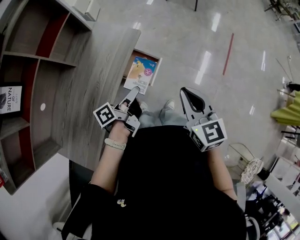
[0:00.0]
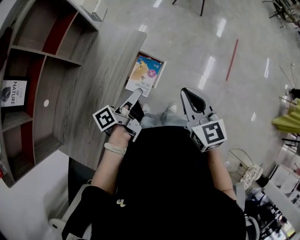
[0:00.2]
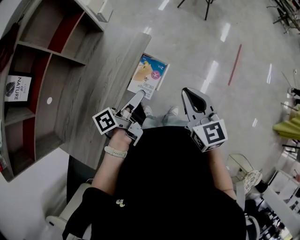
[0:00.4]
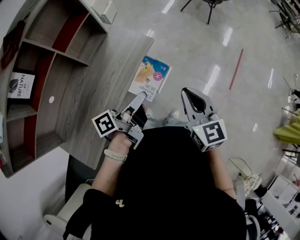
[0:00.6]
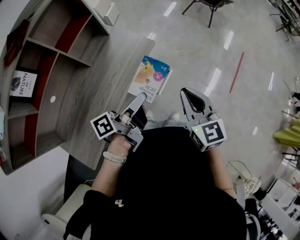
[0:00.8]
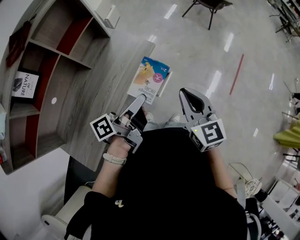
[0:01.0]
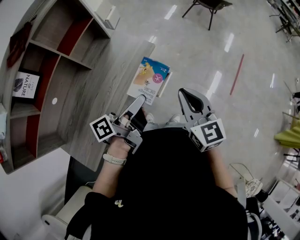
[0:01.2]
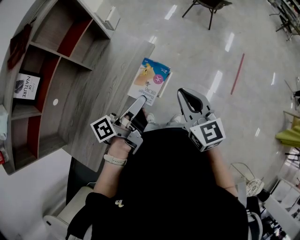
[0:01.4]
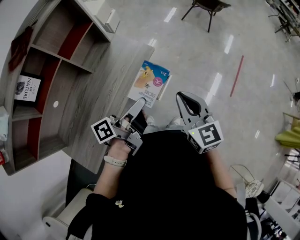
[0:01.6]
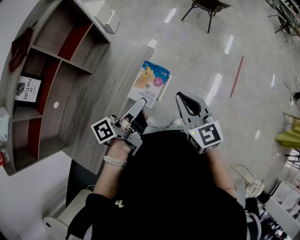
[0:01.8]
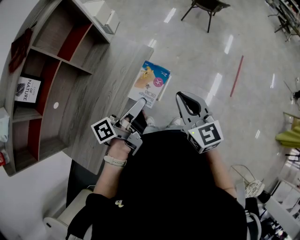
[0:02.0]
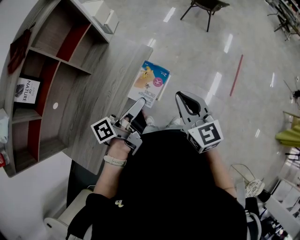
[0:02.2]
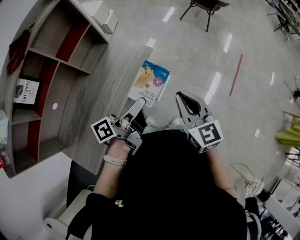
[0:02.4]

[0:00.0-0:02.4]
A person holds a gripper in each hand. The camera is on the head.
0:00.0 to 0:01.2: The left gripper is displaced upward by some 15 cm. The right gripper ends up some 5 cm from where it was.
0:01.2 to 0:02.4: Neither gripper changes place.

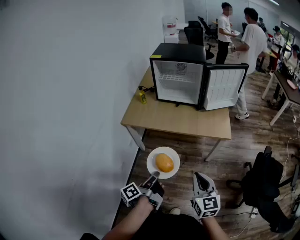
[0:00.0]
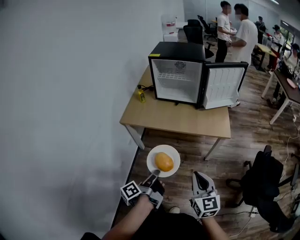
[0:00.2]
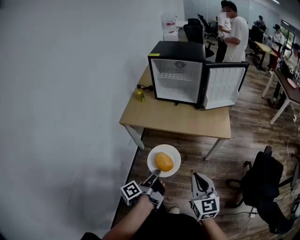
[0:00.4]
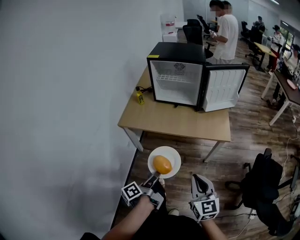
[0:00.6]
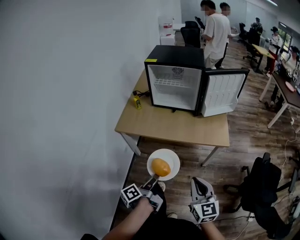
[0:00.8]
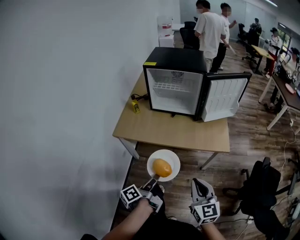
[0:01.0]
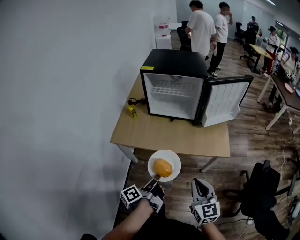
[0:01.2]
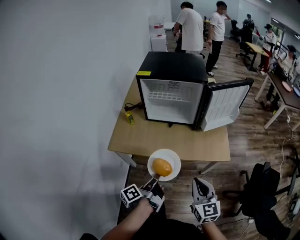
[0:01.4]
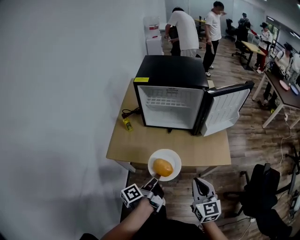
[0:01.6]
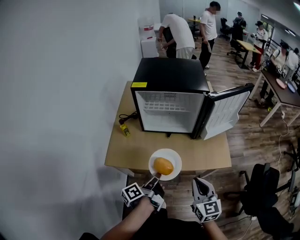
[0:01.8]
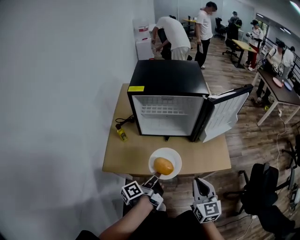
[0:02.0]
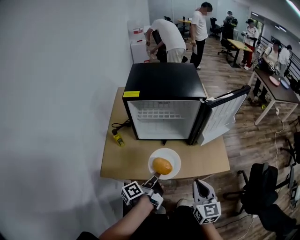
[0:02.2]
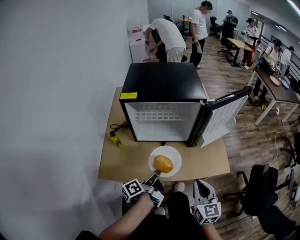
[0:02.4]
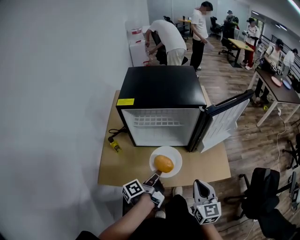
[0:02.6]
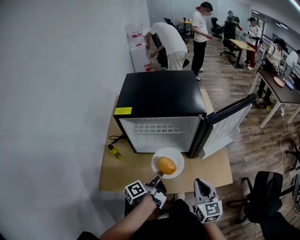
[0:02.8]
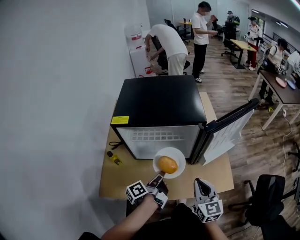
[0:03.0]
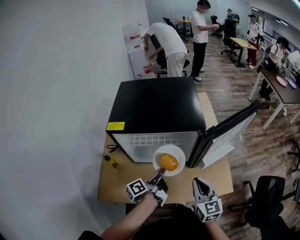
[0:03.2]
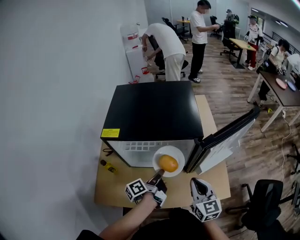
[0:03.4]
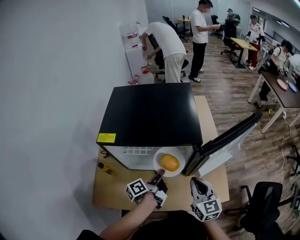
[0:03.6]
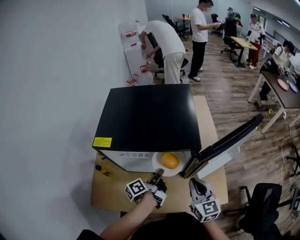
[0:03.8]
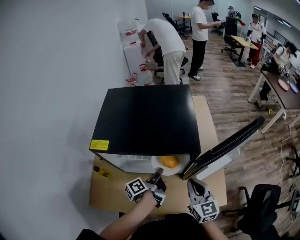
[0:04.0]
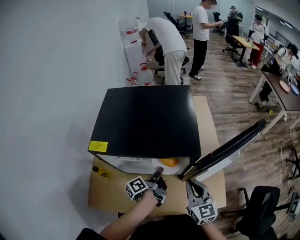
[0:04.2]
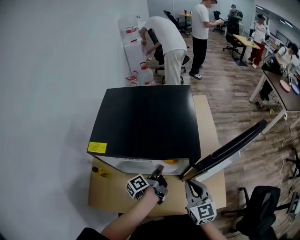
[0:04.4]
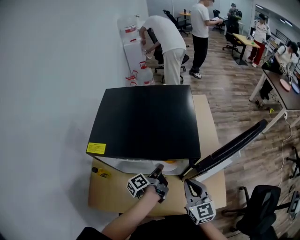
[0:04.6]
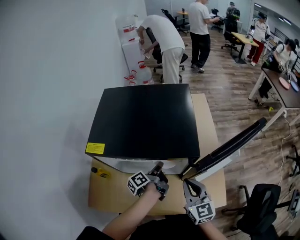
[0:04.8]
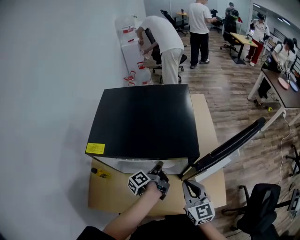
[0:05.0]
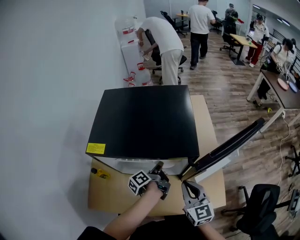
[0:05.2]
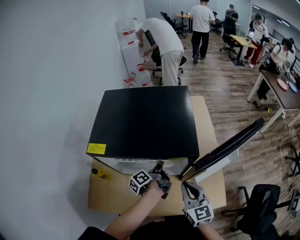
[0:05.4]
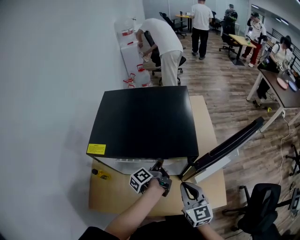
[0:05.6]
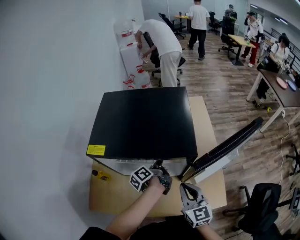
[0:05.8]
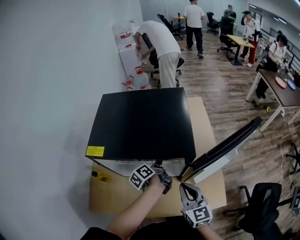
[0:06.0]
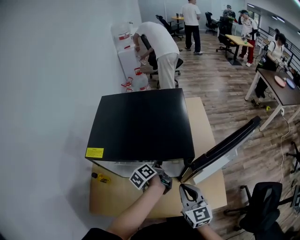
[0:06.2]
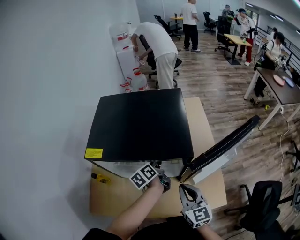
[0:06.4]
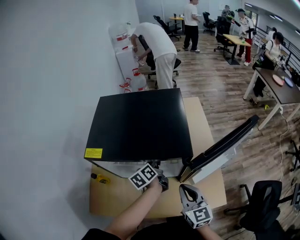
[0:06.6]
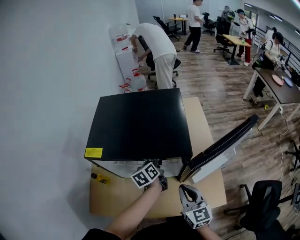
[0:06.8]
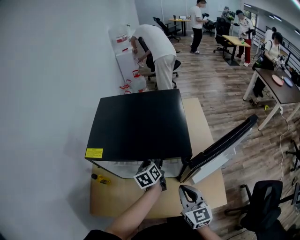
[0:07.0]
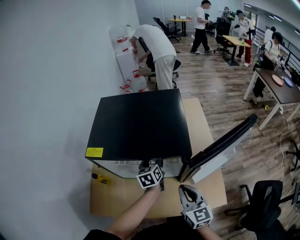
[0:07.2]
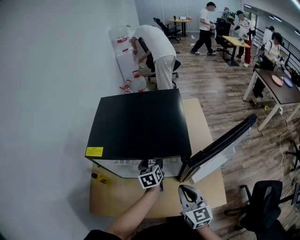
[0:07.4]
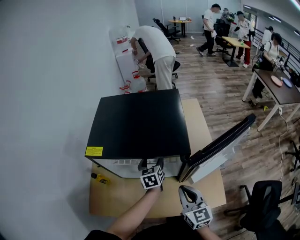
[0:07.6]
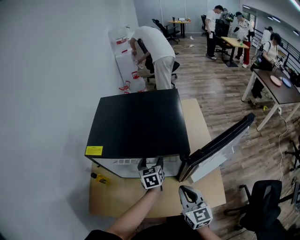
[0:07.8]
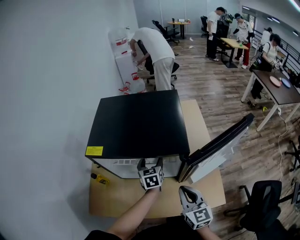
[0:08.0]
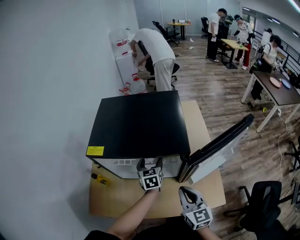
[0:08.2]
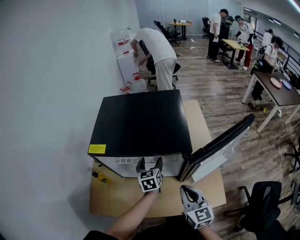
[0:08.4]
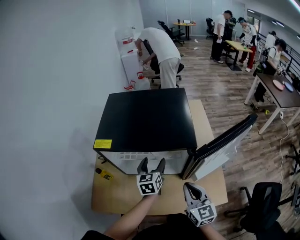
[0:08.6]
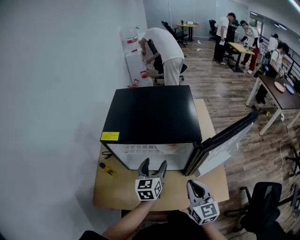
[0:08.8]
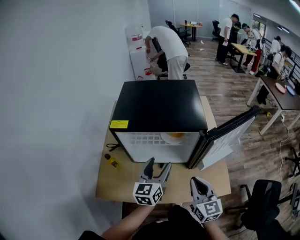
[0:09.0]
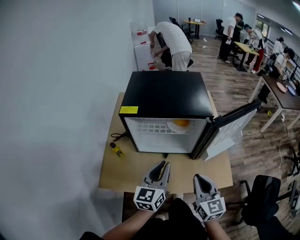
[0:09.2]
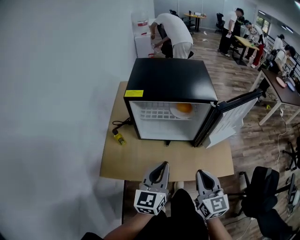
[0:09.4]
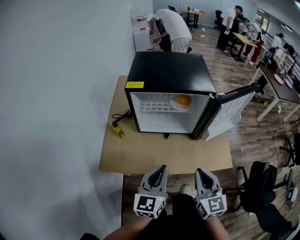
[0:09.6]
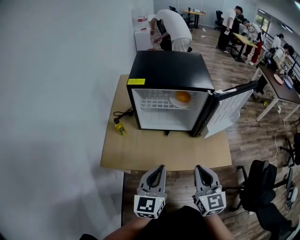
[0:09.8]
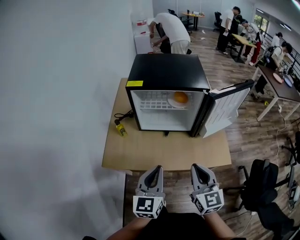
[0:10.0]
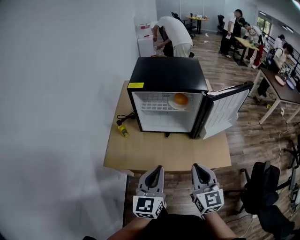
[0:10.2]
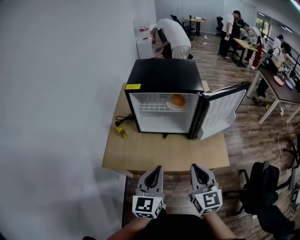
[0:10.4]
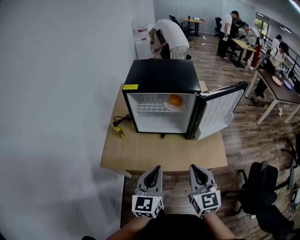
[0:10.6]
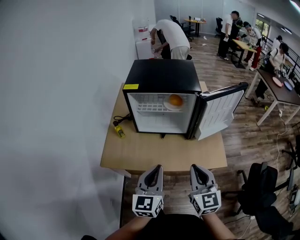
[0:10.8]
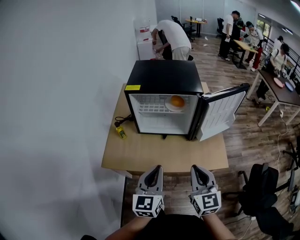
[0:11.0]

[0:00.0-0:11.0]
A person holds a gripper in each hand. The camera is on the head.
0:00.0 to 0:01.6: The grippers both shift forward by approximately 25 cm.
0:01.6 to 0:03.2: Both grippers move forward, roughly 30 cm.
0:03.2 to 0:04.8: Both grippers move forward, approximately 10 cm.
0:04.8 to 0:06.2: There are only small adjustments of the grippers.
0:06.2 to 0:07.8: The left gripper twists approximately 60 degrees clockwise, seen from behind, and opens up.
0:07.8 to 0:09.4: The right gripper goes approximately 15 cm backward and to the left; the left gripper heads backward and upward, covering about 35 cm, changes its angle by some 30 degrees, and closes.
0:09.4 to 0:11.0: The grippers both shift backward by some 10 cm.

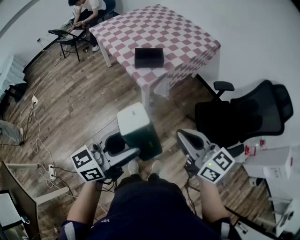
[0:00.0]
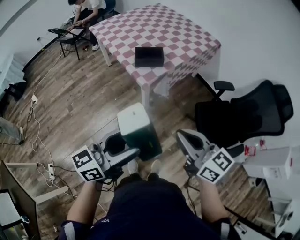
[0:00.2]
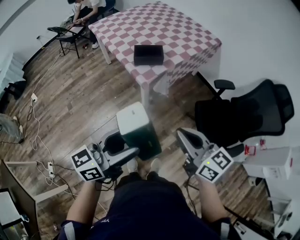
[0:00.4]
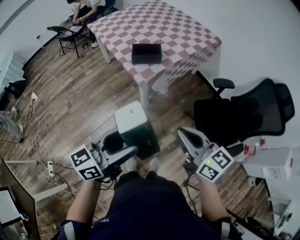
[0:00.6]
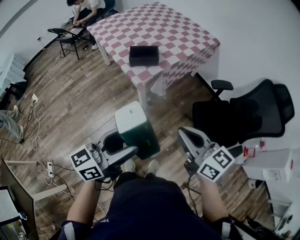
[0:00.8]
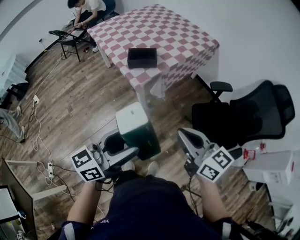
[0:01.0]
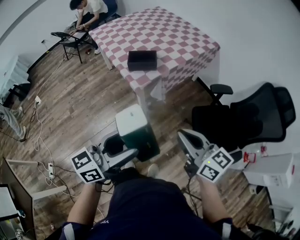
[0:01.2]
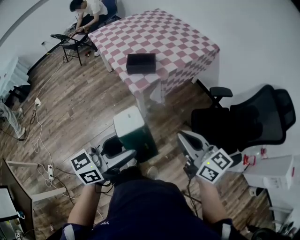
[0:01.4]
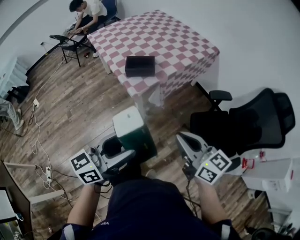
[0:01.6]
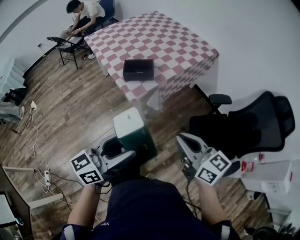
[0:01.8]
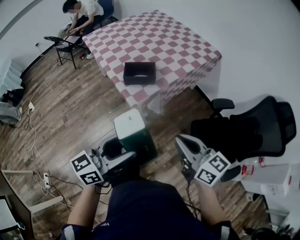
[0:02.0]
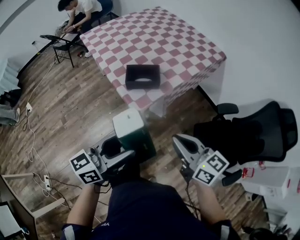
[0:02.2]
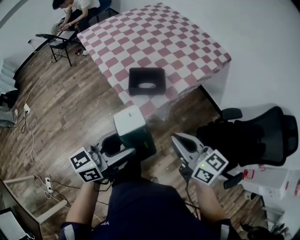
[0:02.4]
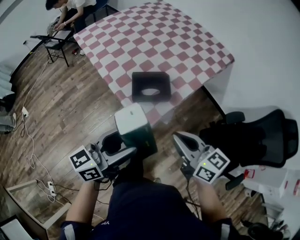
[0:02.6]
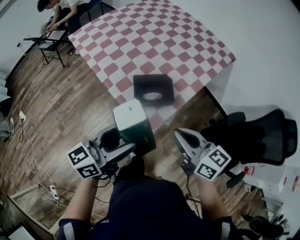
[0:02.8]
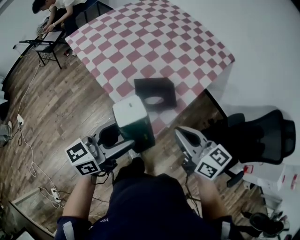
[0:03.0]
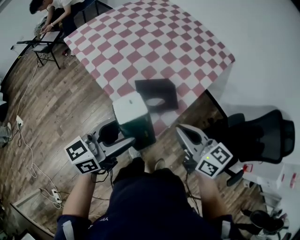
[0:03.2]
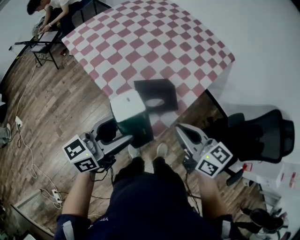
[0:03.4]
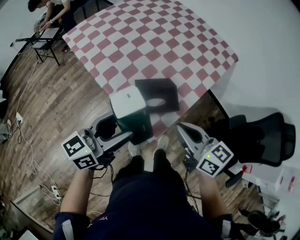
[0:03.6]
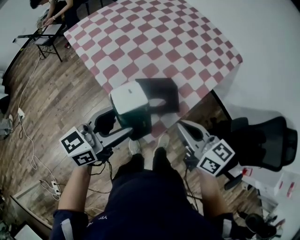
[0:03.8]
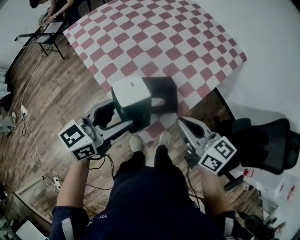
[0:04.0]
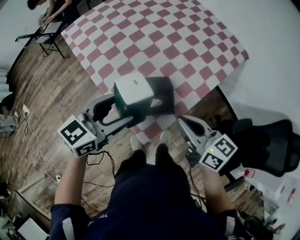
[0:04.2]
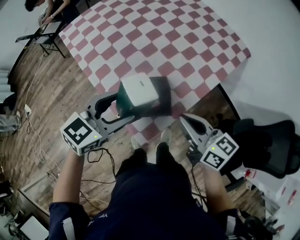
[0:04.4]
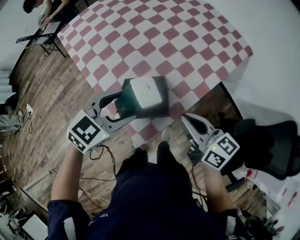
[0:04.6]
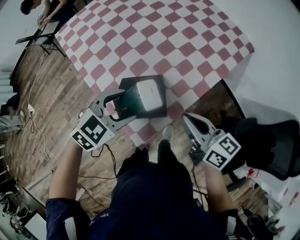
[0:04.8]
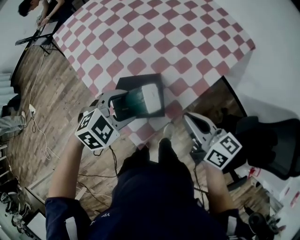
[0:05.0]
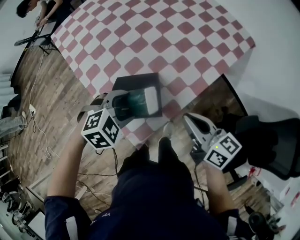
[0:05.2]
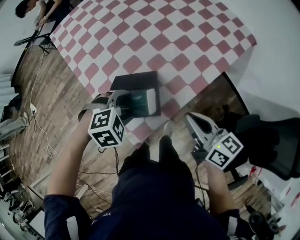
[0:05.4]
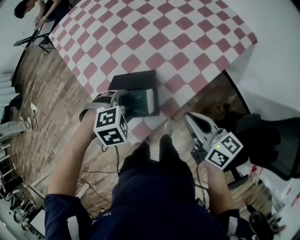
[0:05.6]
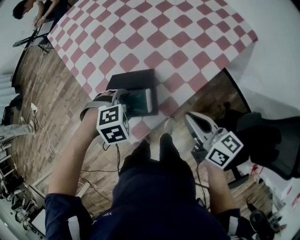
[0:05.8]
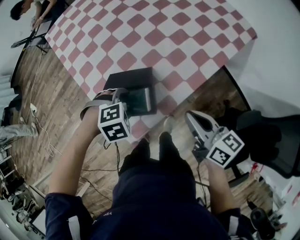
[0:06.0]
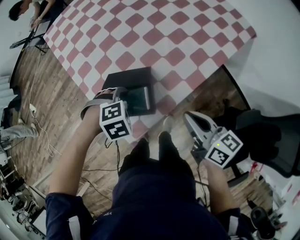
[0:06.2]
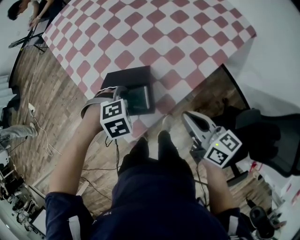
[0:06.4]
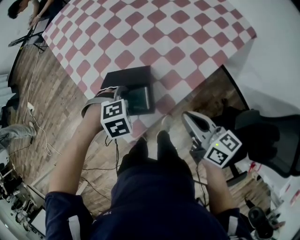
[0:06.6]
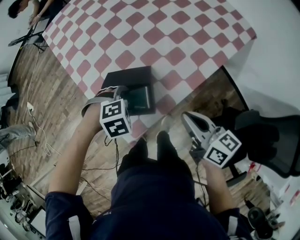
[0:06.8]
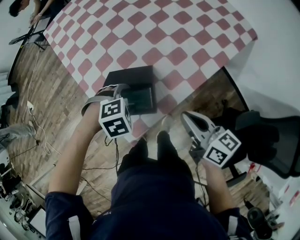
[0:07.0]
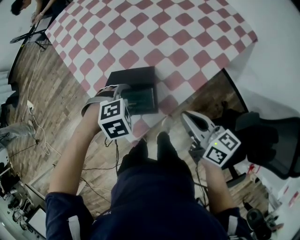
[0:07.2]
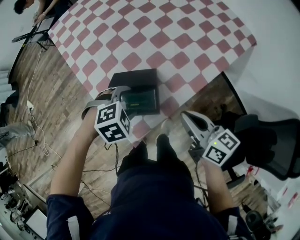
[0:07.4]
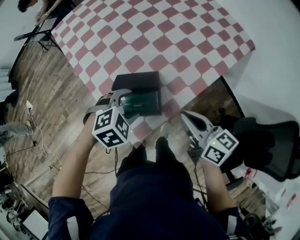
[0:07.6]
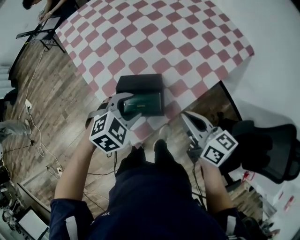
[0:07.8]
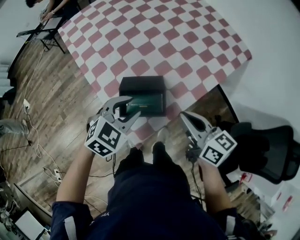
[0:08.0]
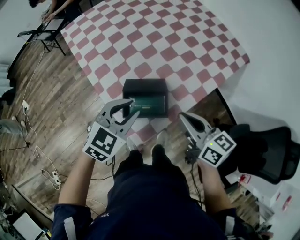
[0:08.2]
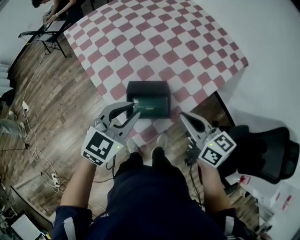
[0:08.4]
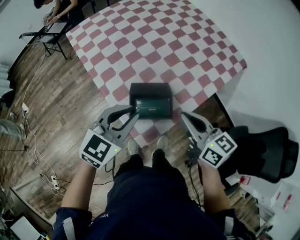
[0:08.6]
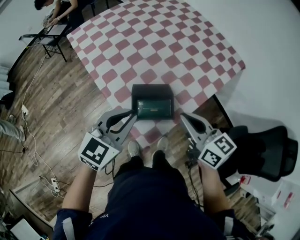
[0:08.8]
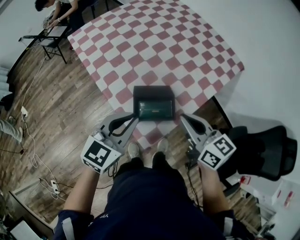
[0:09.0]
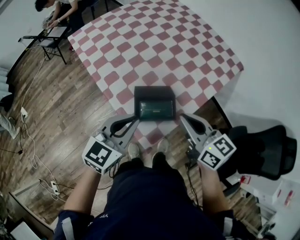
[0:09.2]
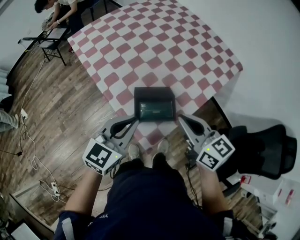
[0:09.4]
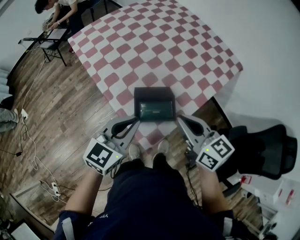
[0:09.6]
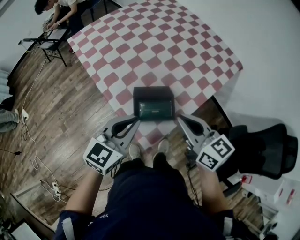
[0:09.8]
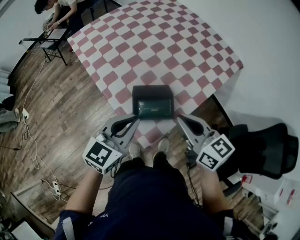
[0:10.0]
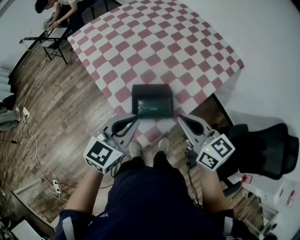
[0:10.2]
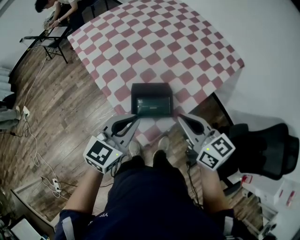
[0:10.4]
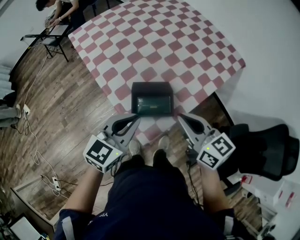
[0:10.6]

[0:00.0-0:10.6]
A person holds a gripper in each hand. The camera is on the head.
0:00.0 to 0:01.6: The two grippers go roughly 10 cm to the right and forward.
0:01.6 to 0:03.0: The two grippers go about 40 cm forward and to the left.
0:03.0 to 0:04.6: The left gripper shifts roughly 20 cm forward, to the right and downward, and tilts its fingers roughly 30 degrees downward. The right gripper travels forward and to the right by approximately 15 cm.
0:04.6 to 0:06.0: The right gripper ends up about 10 cm from where it was. Meanwhile the left gripper is displaced downward by roughly 15 cm, and tips its fingers downward by about 50 degrees.
0:06.0 to 0:07.6: The left gripper changes its angle by approximately 20 degrees.
0:07.6 to 0:09.0: The right gripper is displaced to the left and upward by some 15 cm, while the left gripper moves upward and to the left, roughly 15 cm, angles its fingers upward, by approximately 40 degrees, and closes.
0:09.0 to 0:10.6: There are only small adjustments of the grippers.
